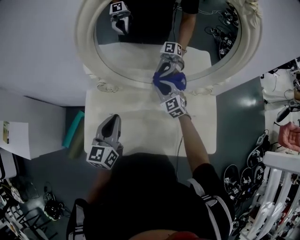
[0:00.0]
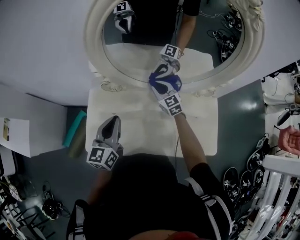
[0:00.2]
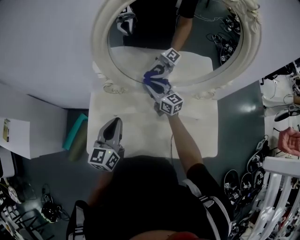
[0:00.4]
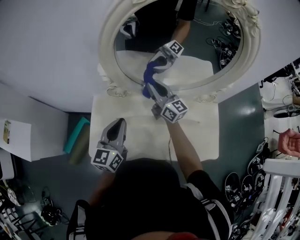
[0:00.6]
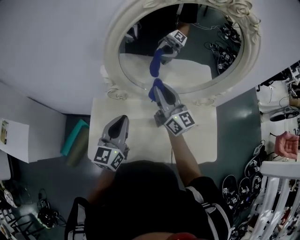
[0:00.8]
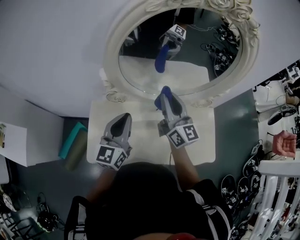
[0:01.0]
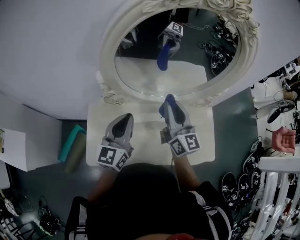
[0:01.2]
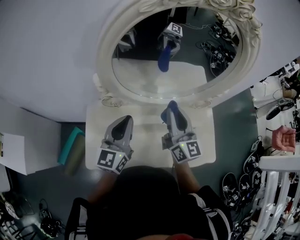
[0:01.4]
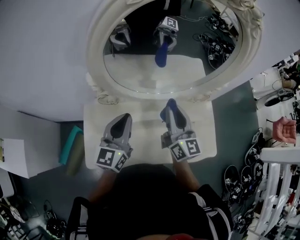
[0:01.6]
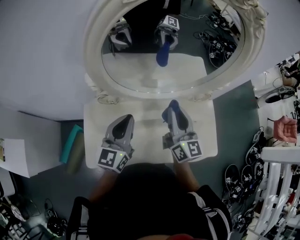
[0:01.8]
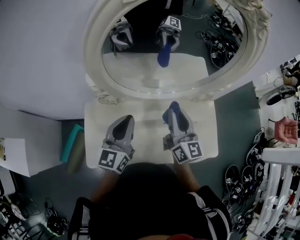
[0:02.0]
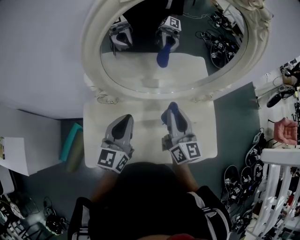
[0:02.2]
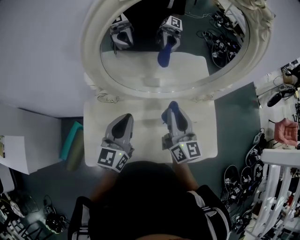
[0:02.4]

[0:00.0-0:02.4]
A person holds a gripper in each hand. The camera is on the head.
0.0 to 1.2 s: The right gripper shifts about 25 cm upward and backward, and points its fingers approximately 30 degrees further upward. The left gripper heads upward, covering approximately 5 cm.
1.2 to 2.4 s: The right gripper shifts some 5 cm downward.

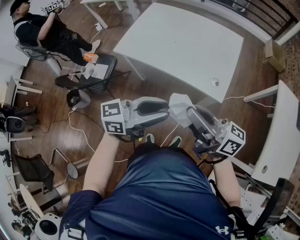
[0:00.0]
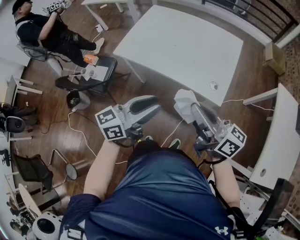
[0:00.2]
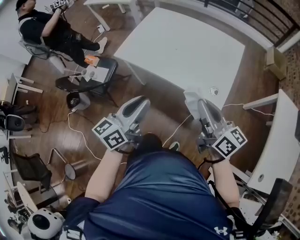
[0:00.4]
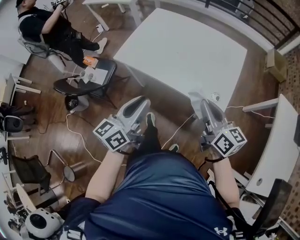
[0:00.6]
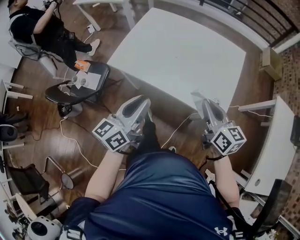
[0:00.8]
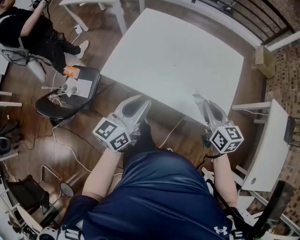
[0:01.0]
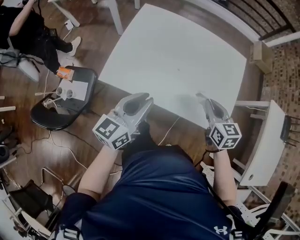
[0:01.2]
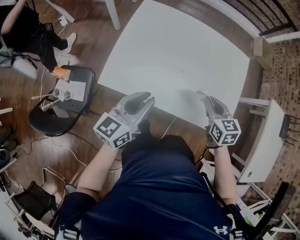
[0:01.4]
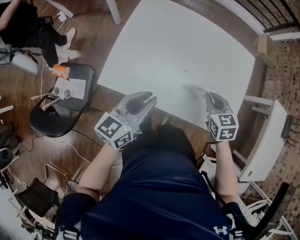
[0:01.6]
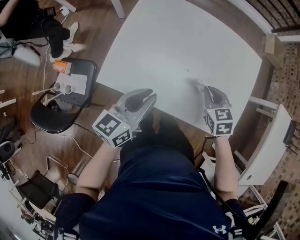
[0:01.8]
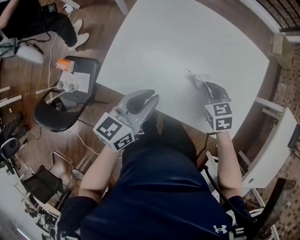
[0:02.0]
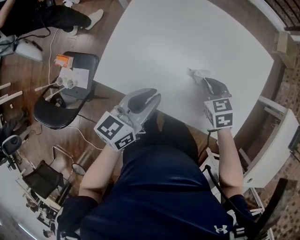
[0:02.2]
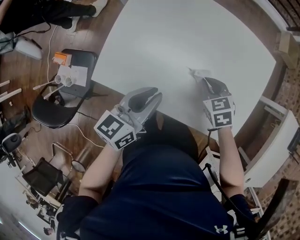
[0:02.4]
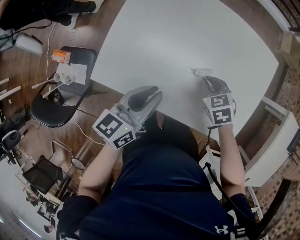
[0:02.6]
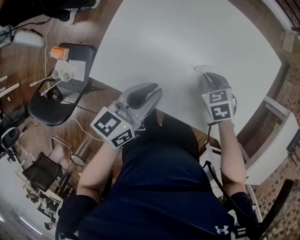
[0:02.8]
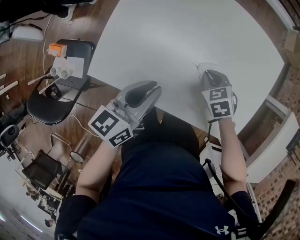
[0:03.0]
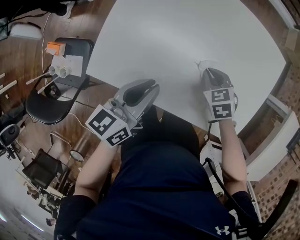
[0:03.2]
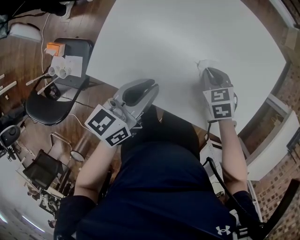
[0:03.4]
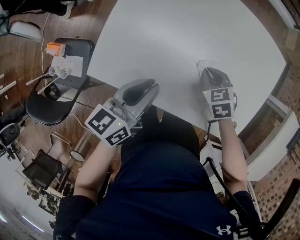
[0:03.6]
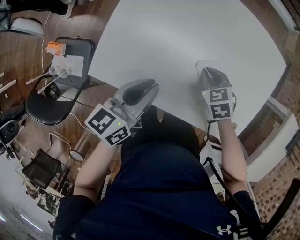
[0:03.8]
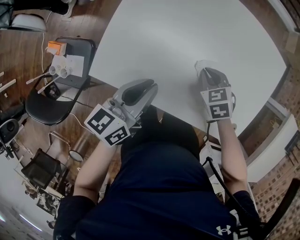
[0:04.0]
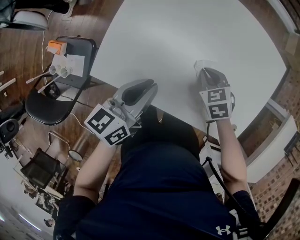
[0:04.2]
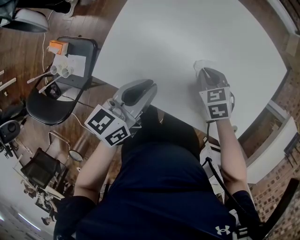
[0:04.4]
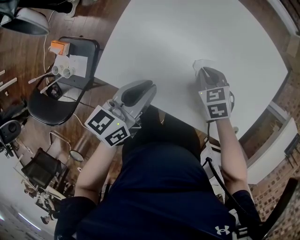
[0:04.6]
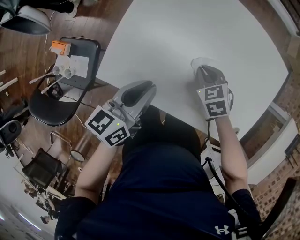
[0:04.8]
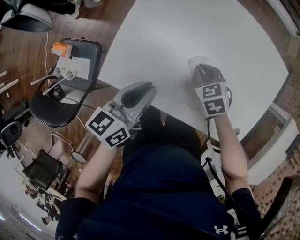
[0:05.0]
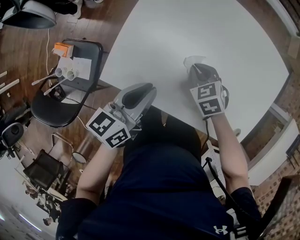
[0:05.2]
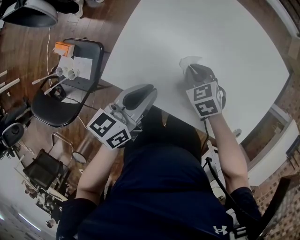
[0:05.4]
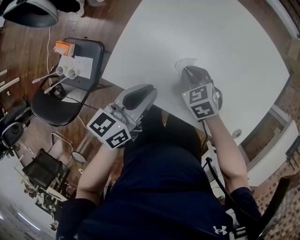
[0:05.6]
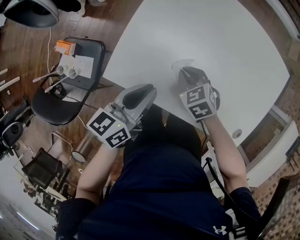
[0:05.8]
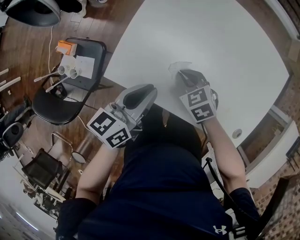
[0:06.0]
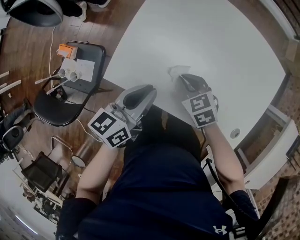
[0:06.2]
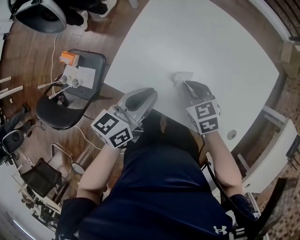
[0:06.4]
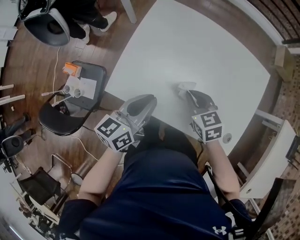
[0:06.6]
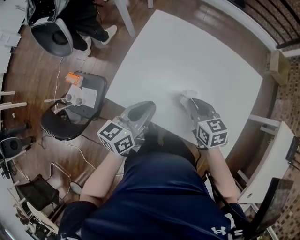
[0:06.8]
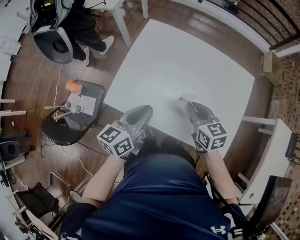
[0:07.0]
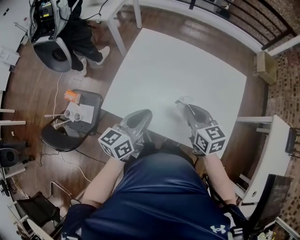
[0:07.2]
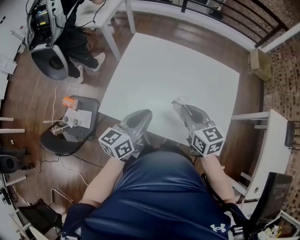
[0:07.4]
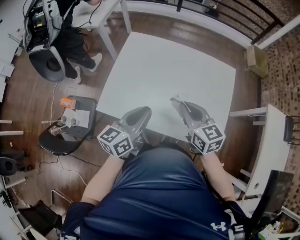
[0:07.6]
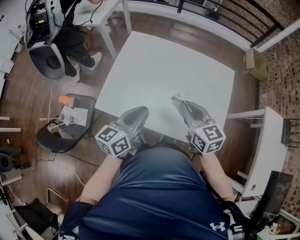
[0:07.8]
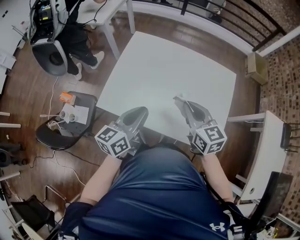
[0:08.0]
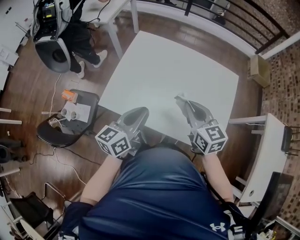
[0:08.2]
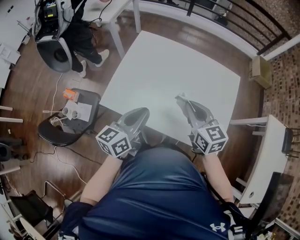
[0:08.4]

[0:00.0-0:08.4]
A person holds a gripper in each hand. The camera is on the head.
0.0 to 1.4 s: The right gripper is displaced forward and downward by about 35 cm, and angles its fingers downward, by roughly 60 degrees, while the left gripper travels forward, to the left and downward by roughly 35 cm, and swivels approximately 30 degrees.
1.4 to 2.8 s: The left gripper heads forward and downward, covering about 10 cm. Meanwhile the right gripper is displaced downward and forward by some 15 cm, and rotates approximately 30 degrees.
2.8 to 4.2 s: The grippers move only a little.
4.2 to 5.6 s: The right gripper goes approximately 10 cm to the left.
5.6 to 7.0 s: The left gripper heads upward and backward, covering roughly 10 cm; the right gripper shifts some 20 cm upward, to the right and backward, and turns by approximately 40 degrees.
7.0 to 8.4 s: The left gripper ends up about 5 cm from where it was. The right gripper goes about 10 cm upward.

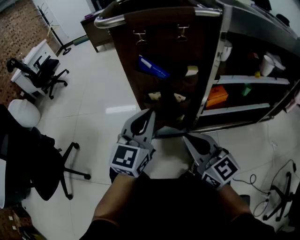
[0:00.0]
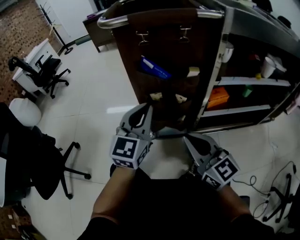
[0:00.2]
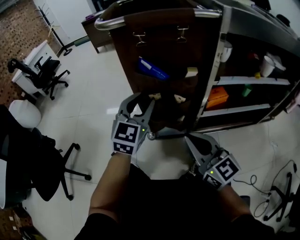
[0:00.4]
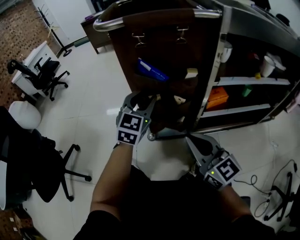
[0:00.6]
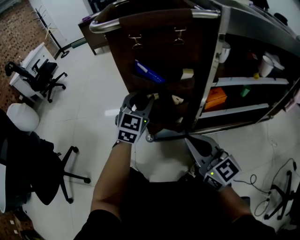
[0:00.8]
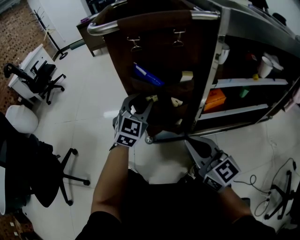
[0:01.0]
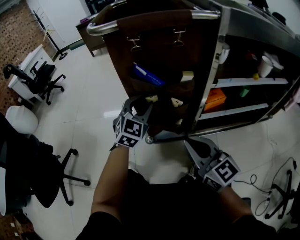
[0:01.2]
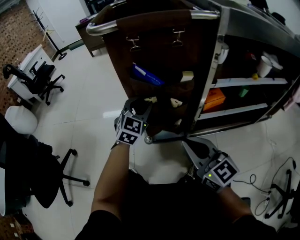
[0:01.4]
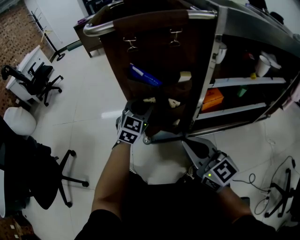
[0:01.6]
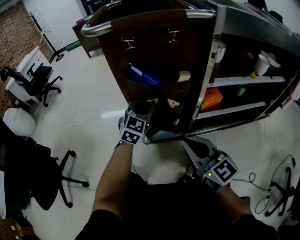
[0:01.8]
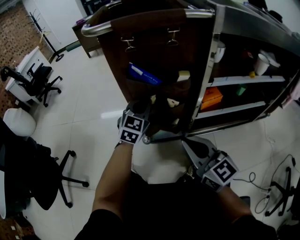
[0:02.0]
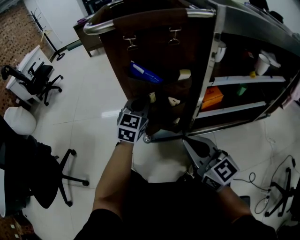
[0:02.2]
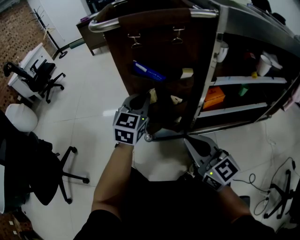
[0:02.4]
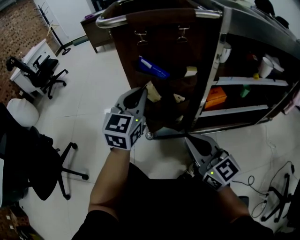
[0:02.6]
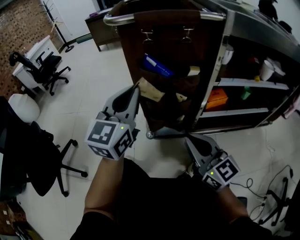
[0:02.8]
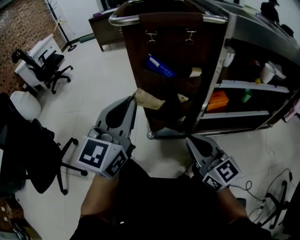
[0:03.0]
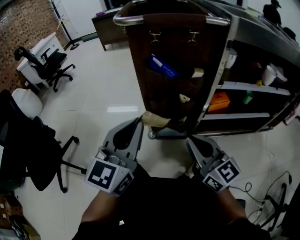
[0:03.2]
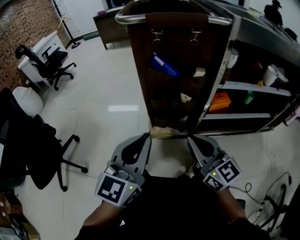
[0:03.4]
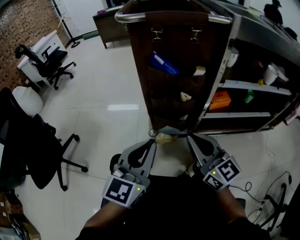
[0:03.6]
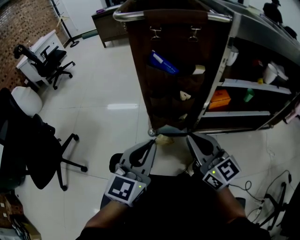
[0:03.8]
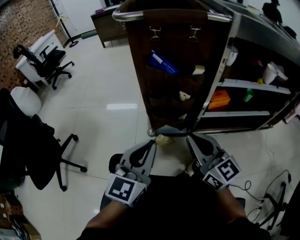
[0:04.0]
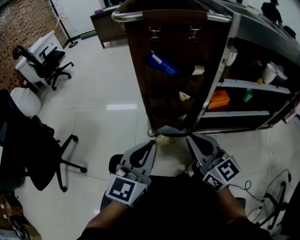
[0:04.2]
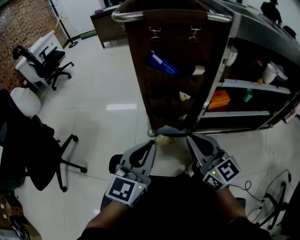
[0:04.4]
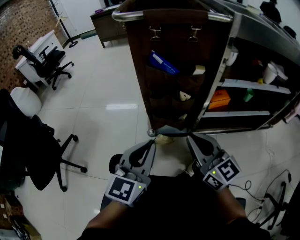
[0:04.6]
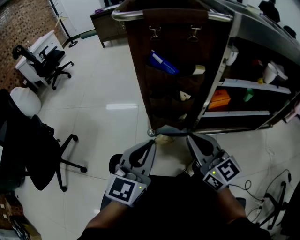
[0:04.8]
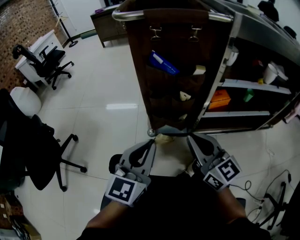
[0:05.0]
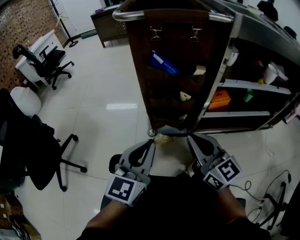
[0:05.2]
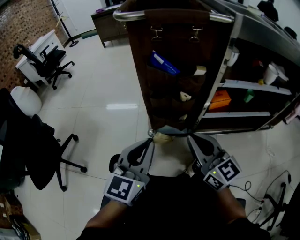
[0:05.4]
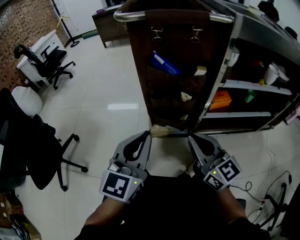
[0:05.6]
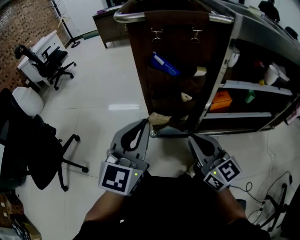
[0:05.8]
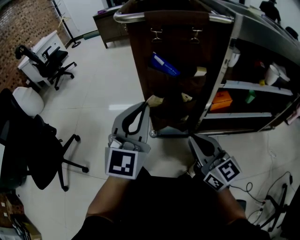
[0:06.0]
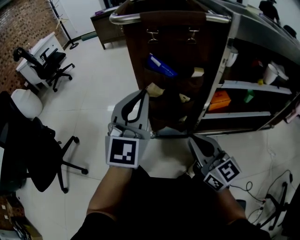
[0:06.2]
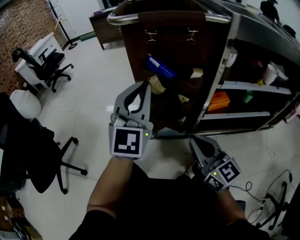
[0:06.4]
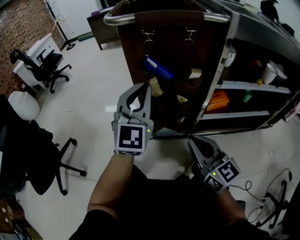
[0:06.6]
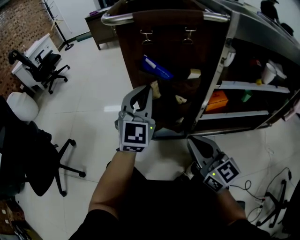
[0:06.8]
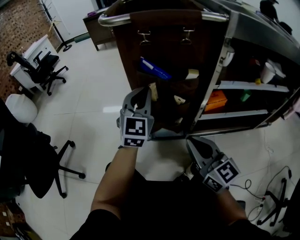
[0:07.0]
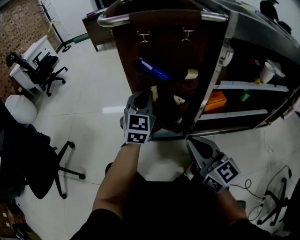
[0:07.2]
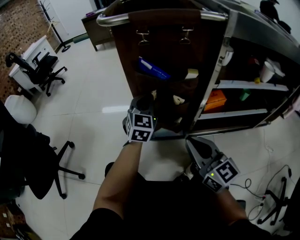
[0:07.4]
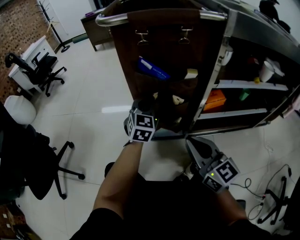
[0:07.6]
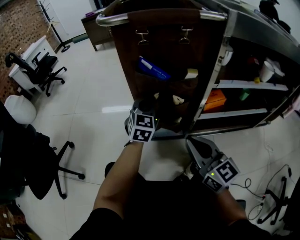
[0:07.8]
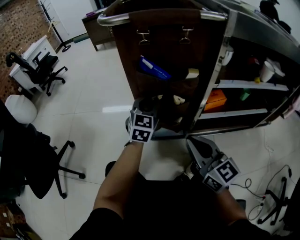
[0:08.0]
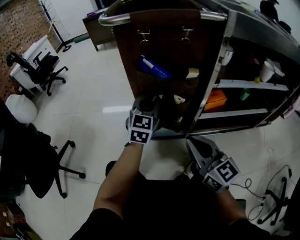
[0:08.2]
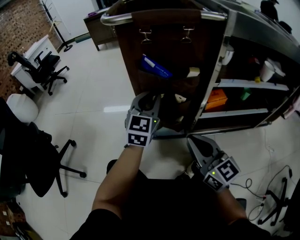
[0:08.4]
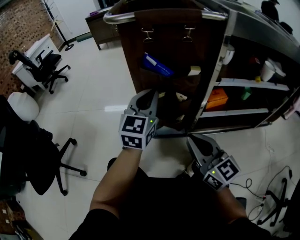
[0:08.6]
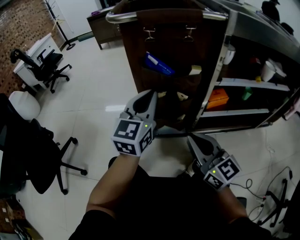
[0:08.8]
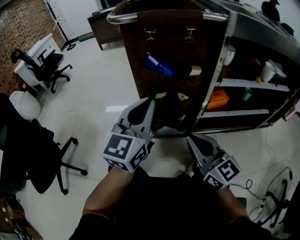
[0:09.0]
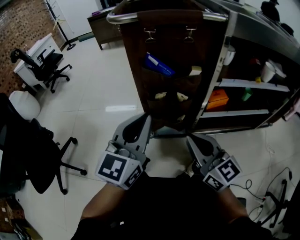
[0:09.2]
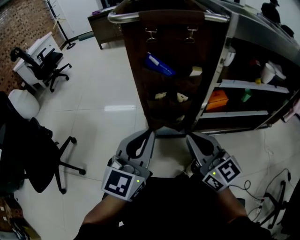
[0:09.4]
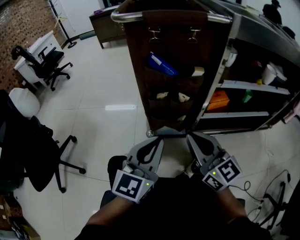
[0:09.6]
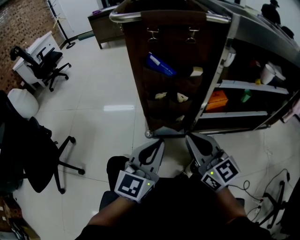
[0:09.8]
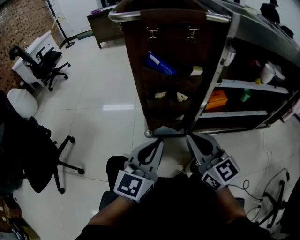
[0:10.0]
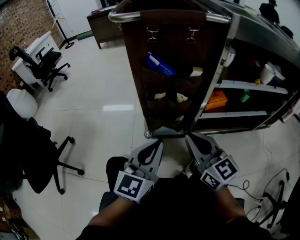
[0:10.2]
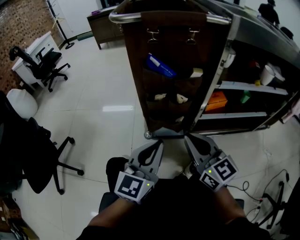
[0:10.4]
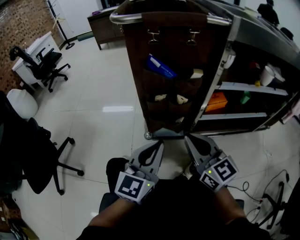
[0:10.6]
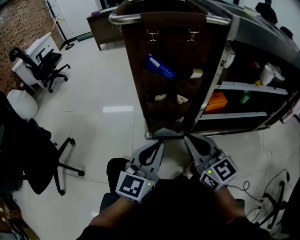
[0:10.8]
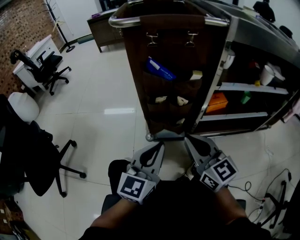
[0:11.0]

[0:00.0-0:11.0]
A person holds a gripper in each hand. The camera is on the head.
0.0 to 1.6 s: The left gripper goes some 15 cm forward and downward, rotates about 30 degrees, and opens its fingers.
1.6 to 3.2 s: The left gripper heads backward and upward, covering approximately 25 cm, changes its angle by roughly 30 degrees, and closes up.
3.2 to 4.8 s: The left gripper is displaced downward by about 10 cm.
4.8 to 6.2 s: The left gripper heads forward and upward, covering about 15 cm, and swivels approximately 30 degrees.
6.2 to 7.8 s: The left gripper travels downward and forward by some 20 cm, and turns by approximately 20 degrees.
7.8 to 9.4 s: The left gripper heads backward and upward, covering roughly 25 cm, and turns by about 20 degrees.
9.4 to 11.0 s: The left gripper heads downward, covering about 5 cm.

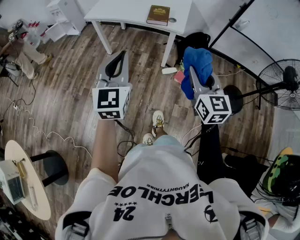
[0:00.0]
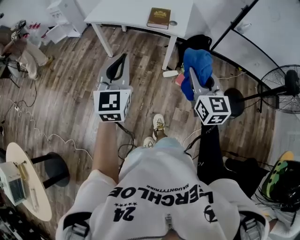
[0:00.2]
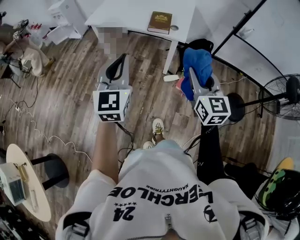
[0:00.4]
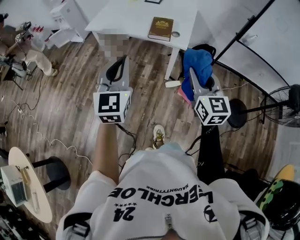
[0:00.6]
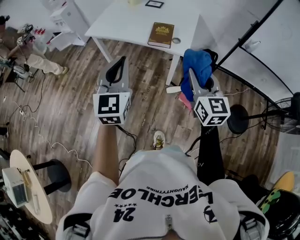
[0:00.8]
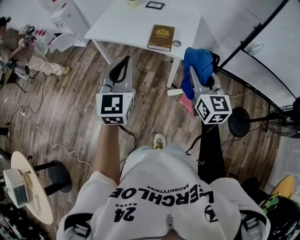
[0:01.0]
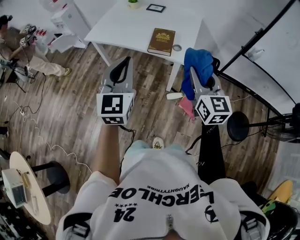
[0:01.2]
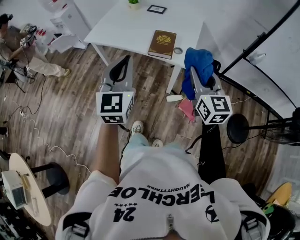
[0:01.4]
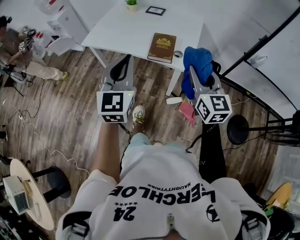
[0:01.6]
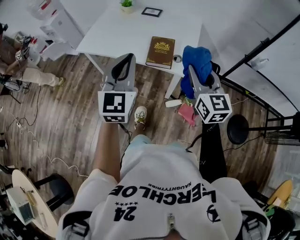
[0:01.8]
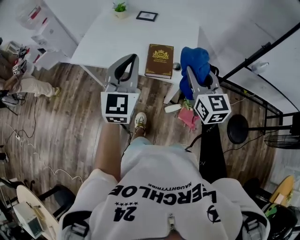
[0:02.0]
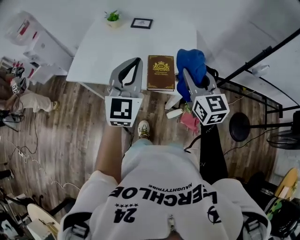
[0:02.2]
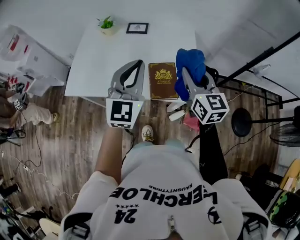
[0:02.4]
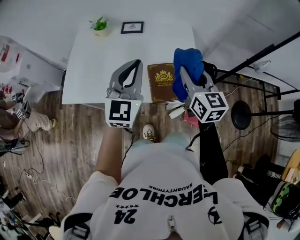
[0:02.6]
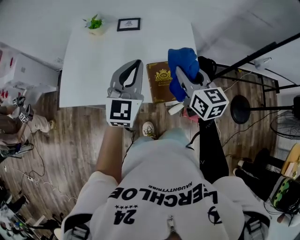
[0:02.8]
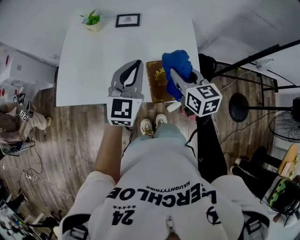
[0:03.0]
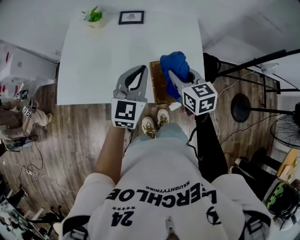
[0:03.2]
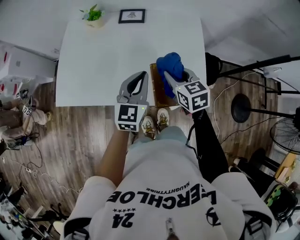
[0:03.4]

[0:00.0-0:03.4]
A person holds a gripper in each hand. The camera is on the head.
0.0 to 1.6 s: Both grippers travel together forward, roughly 30 cm.
1.6 to 3.4 s: The left gripper is displaced forward and downward by some 40 cm, and turns by about 30 degrees, while the right gripper moves forward, downward and to the left, approximately 40 cm, and points its fingers approximately 30 degrees further downward.
